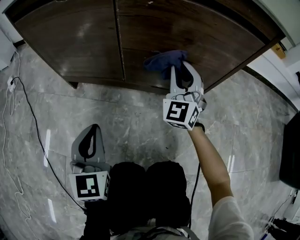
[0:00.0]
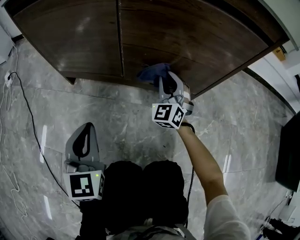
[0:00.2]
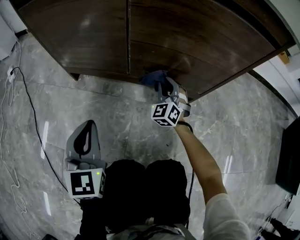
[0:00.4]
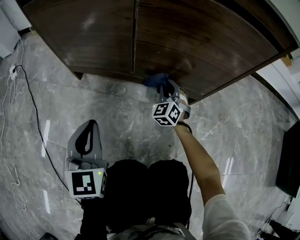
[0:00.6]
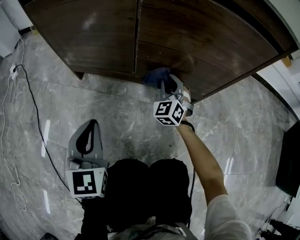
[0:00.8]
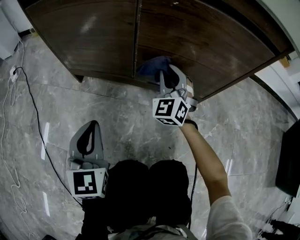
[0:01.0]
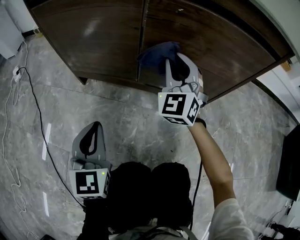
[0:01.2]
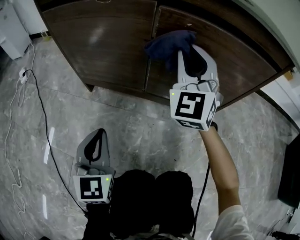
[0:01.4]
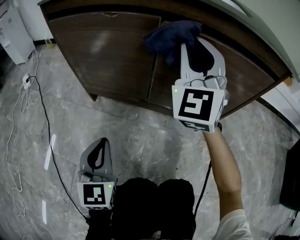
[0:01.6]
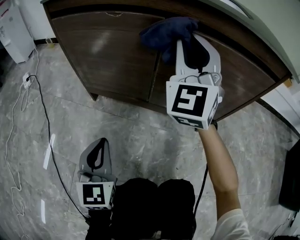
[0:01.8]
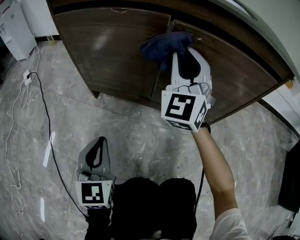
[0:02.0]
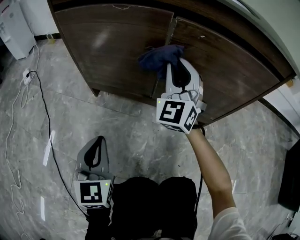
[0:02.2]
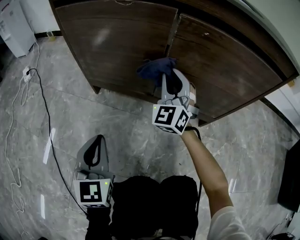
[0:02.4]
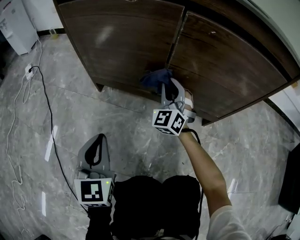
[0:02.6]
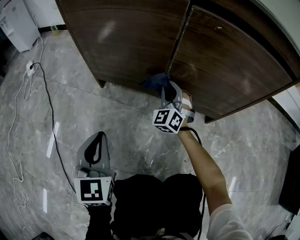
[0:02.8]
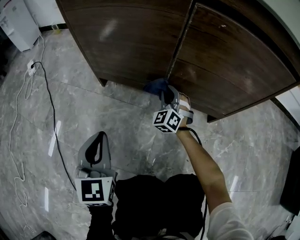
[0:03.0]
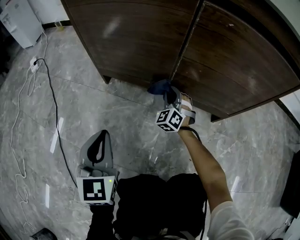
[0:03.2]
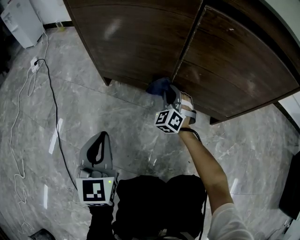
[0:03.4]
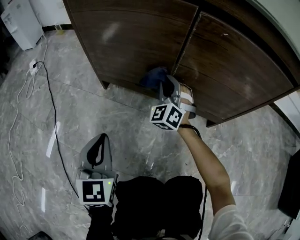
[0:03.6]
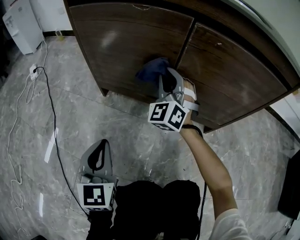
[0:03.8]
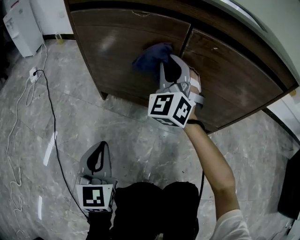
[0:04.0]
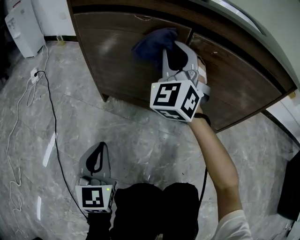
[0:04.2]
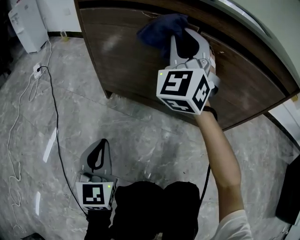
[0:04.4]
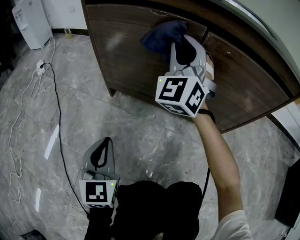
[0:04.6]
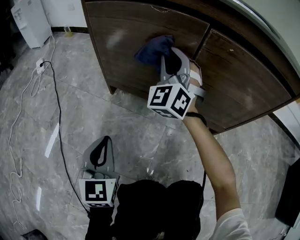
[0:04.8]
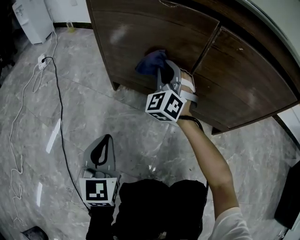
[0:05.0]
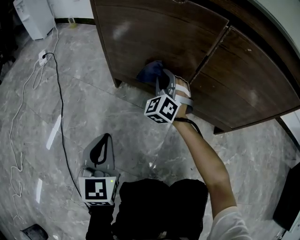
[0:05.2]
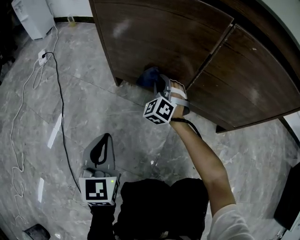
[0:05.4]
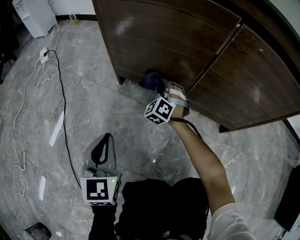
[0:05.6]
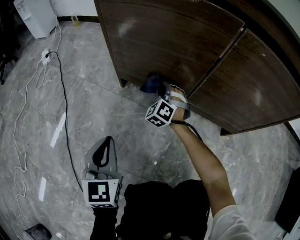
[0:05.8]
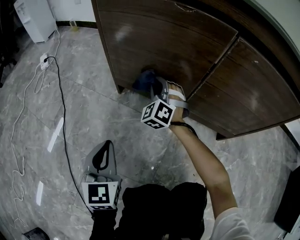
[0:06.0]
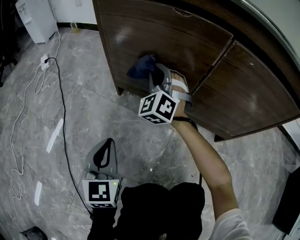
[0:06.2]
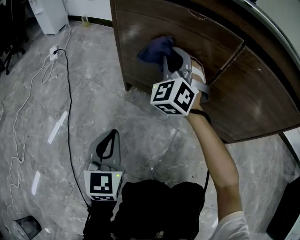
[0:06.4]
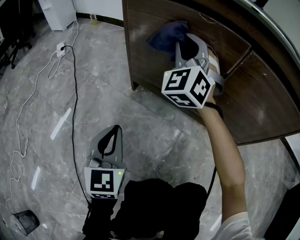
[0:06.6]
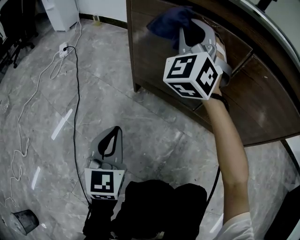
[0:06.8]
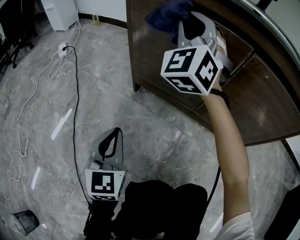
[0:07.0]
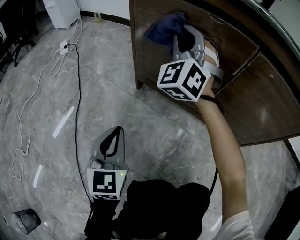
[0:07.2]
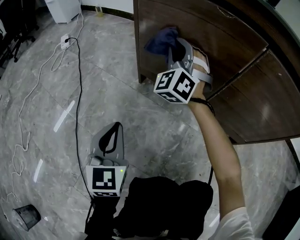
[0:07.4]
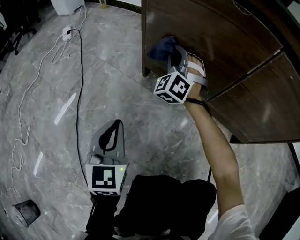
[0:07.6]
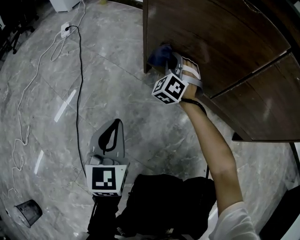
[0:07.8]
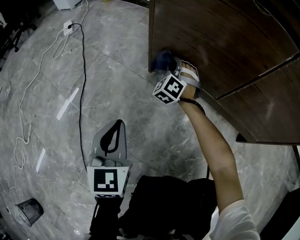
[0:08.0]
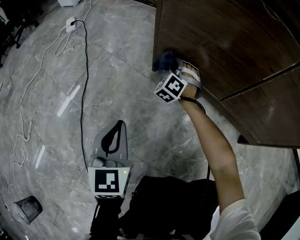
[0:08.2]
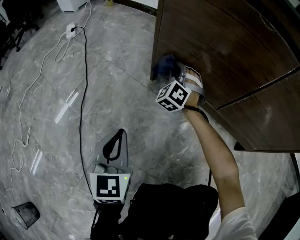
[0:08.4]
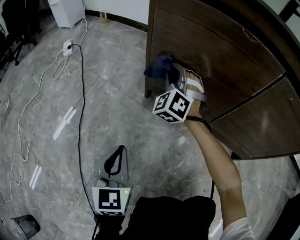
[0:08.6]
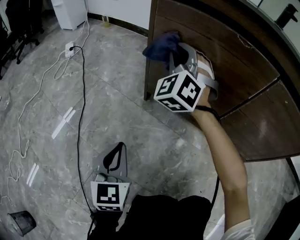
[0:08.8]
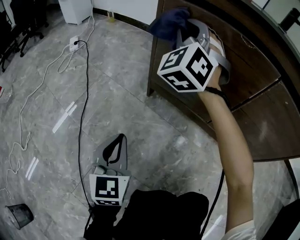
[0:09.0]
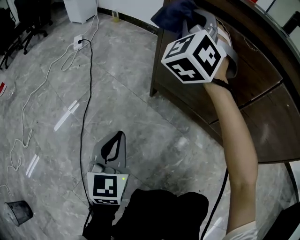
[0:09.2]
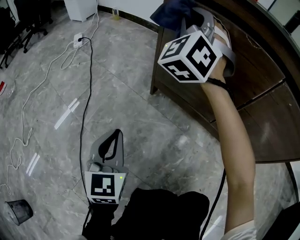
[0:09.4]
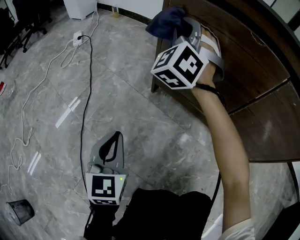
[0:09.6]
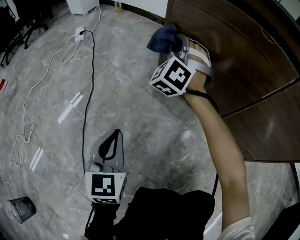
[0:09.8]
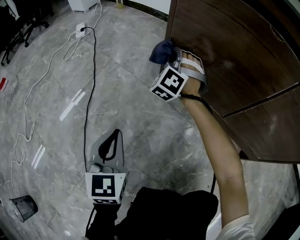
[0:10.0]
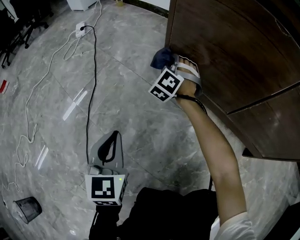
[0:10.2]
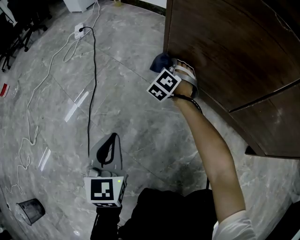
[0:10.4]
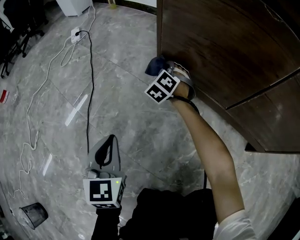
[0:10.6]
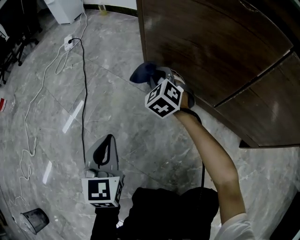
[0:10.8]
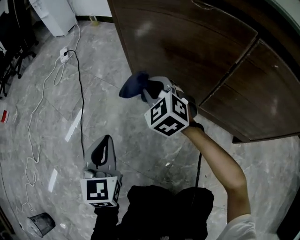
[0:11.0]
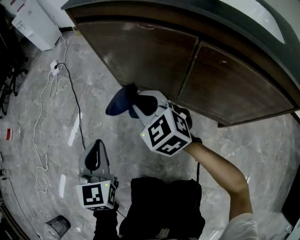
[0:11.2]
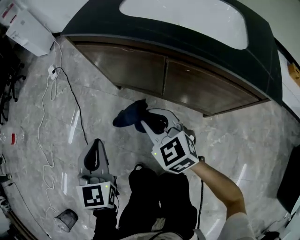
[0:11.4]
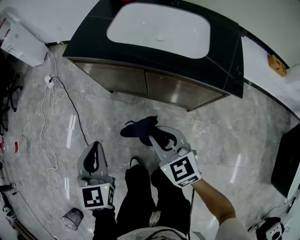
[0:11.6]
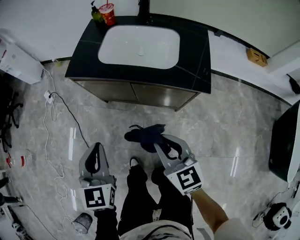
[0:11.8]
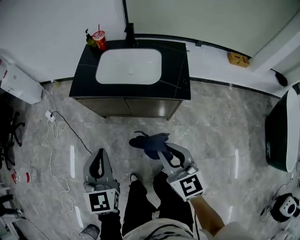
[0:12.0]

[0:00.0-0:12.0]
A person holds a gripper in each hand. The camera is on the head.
0:00.0 to 0:01.6: The right gripper shifts roughly 25 cm upward and to the left, while the left gripper shifts about 5 cm to the left.
0:01.6 to 0:03.0: The left gripper is displaced to the left by approximately 5 cm; the right gripper travels downward by about 40 cm, and changes its angle by some 30 degrees.
0:03.0 to 0:04.4: The right gripper is displaced upward by approximately 40 cm, and swivels approximately 30 degrees.
0:04.4 to 0:06.0: The left gripper moves some 5 cm; the right gripper shifts some 30 cm downward, and changes its angle by roughly 30 degrees.
0:06.0 to 0:07.6: The right gripper is displaced to the left by approximately 5 cm, and moves approximately 30 cm upward and comes back.
0:07.6 to 0:09.0: The right gripper shifts approximately 20 cm upward.
0:09.0 to 0:10.4: The left gripper shifts some 5 cm to the left; the right gripper heads downward, covering some 35 cm, and angles its fingers downward, by about 30 degrees.
0:10.4 to 0:12.0: Both grippers travel together upward, roughly 70 cm. The right gripper rolls clockwise, seen from behind, by some 70 degrees, while the left gripper turns by about 30 degrees.

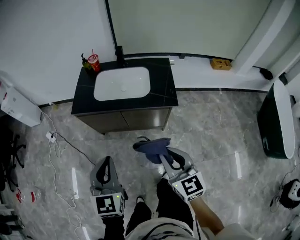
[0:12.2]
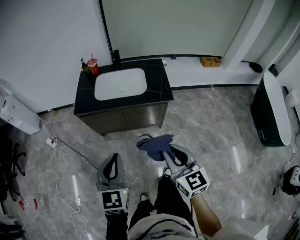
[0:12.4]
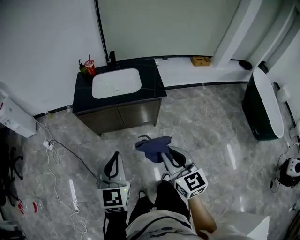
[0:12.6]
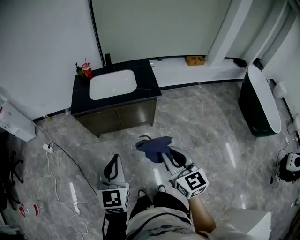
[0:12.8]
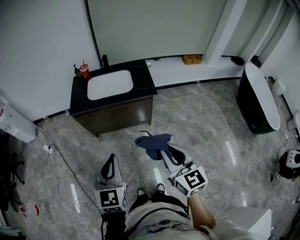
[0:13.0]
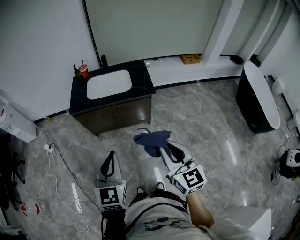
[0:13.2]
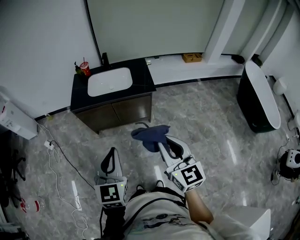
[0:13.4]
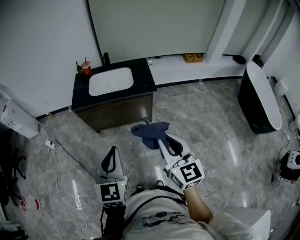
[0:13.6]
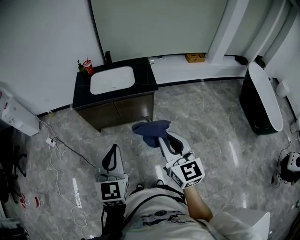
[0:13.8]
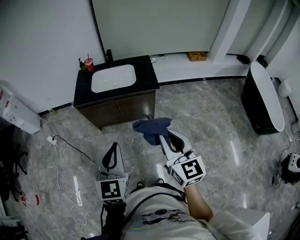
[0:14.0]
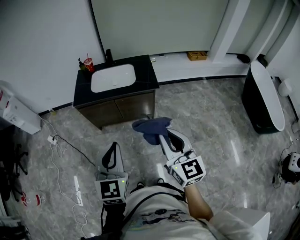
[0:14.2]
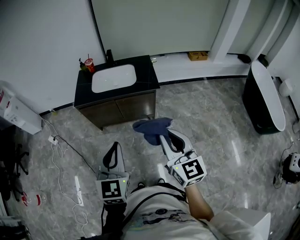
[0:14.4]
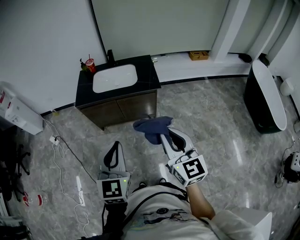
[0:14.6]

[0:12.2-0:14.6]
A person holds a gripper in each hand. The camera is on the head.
0:12.2 to 0:13.4: Both grippers travel together backward and upward, approximately 20 cm.
0:13.4 to 0:14.6: The grippers move only a little.

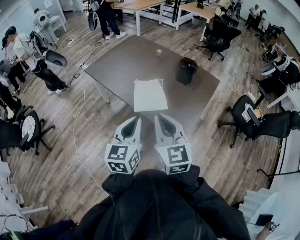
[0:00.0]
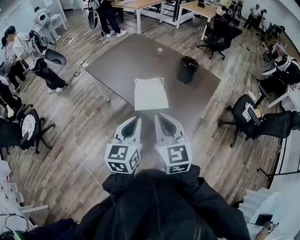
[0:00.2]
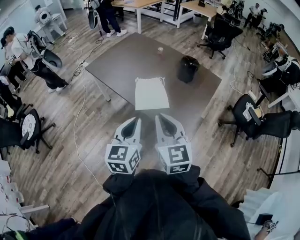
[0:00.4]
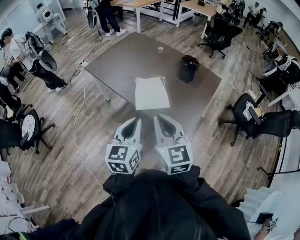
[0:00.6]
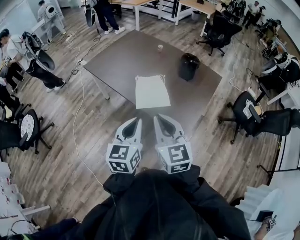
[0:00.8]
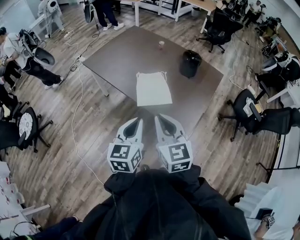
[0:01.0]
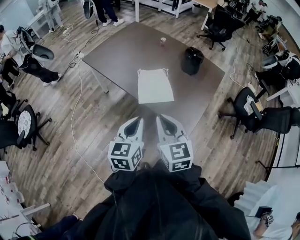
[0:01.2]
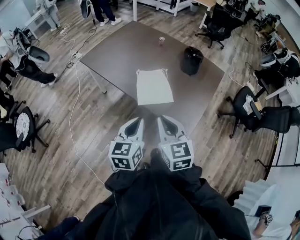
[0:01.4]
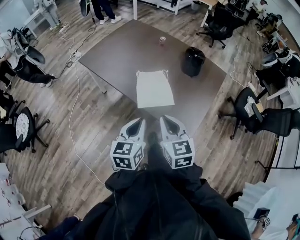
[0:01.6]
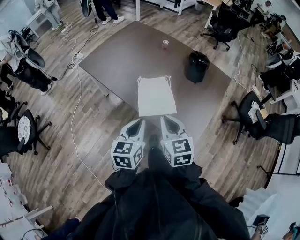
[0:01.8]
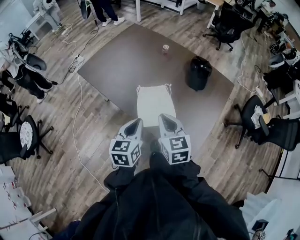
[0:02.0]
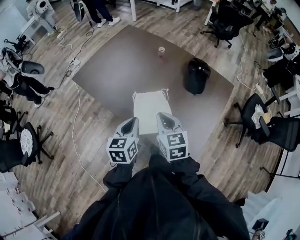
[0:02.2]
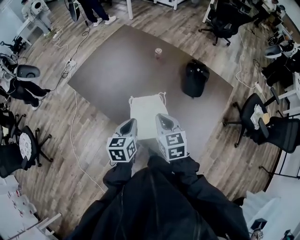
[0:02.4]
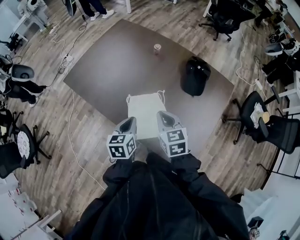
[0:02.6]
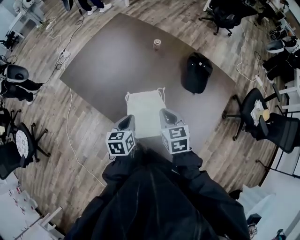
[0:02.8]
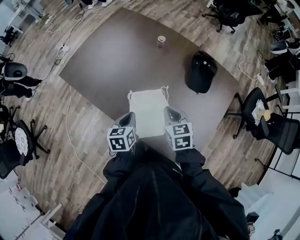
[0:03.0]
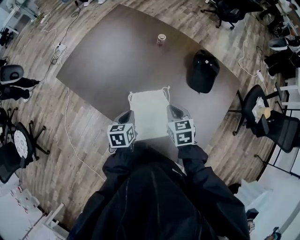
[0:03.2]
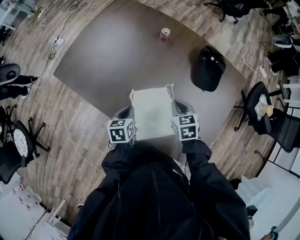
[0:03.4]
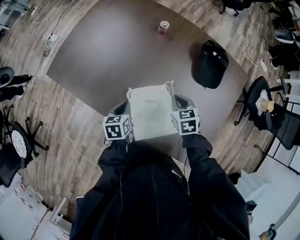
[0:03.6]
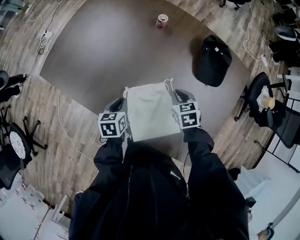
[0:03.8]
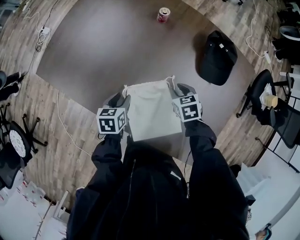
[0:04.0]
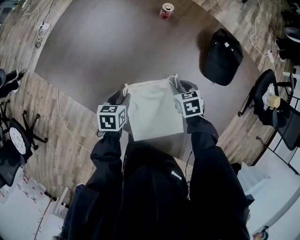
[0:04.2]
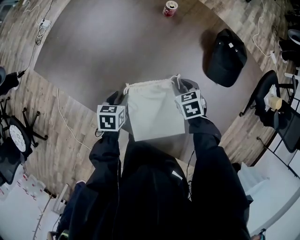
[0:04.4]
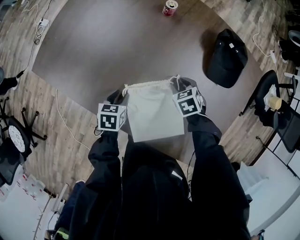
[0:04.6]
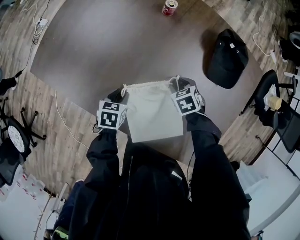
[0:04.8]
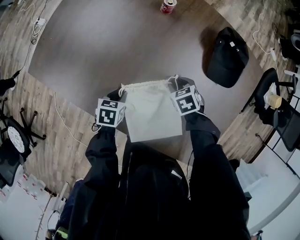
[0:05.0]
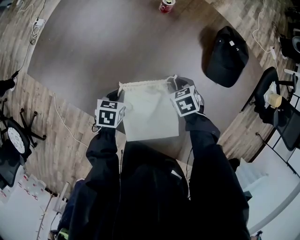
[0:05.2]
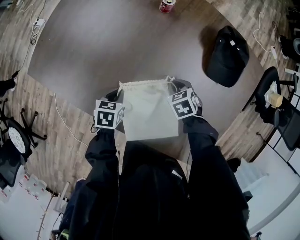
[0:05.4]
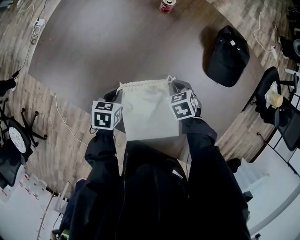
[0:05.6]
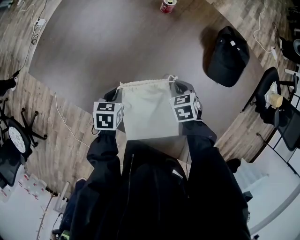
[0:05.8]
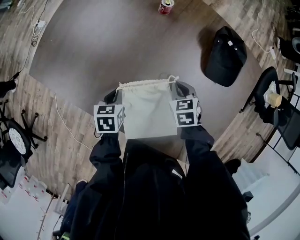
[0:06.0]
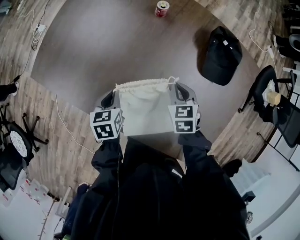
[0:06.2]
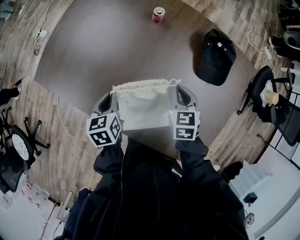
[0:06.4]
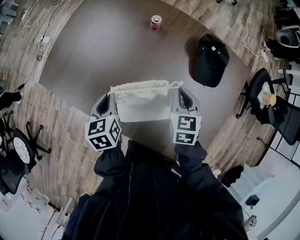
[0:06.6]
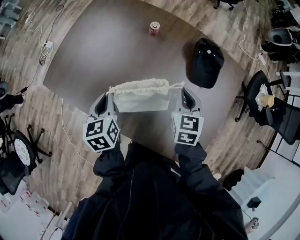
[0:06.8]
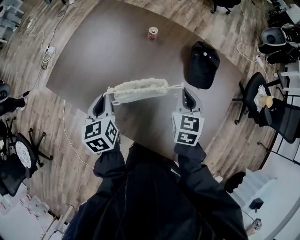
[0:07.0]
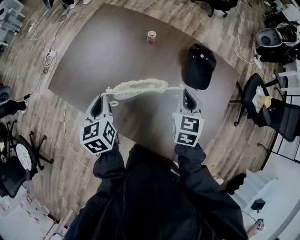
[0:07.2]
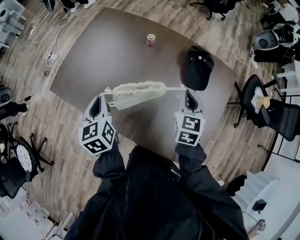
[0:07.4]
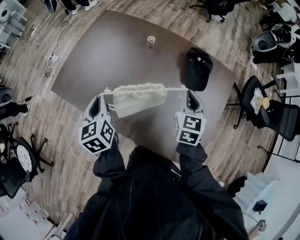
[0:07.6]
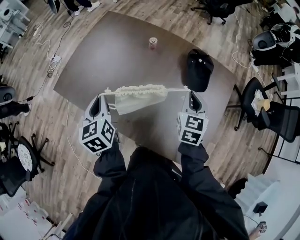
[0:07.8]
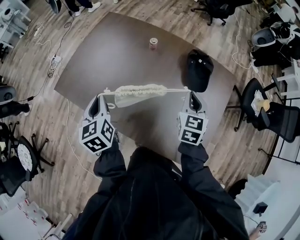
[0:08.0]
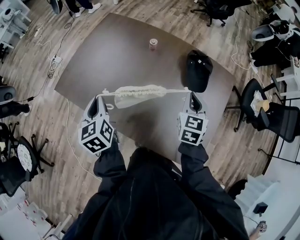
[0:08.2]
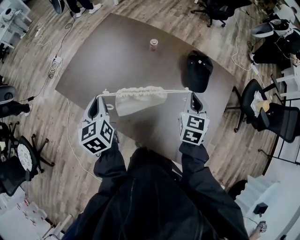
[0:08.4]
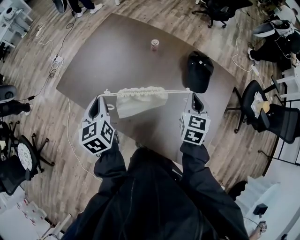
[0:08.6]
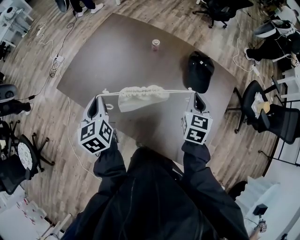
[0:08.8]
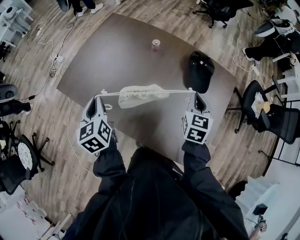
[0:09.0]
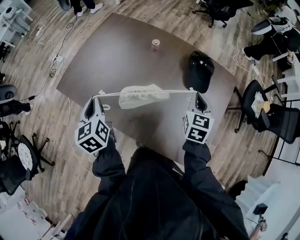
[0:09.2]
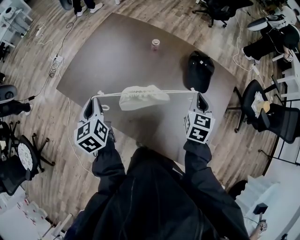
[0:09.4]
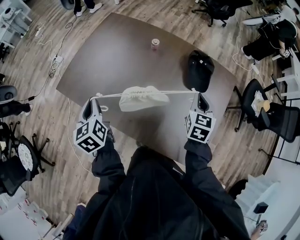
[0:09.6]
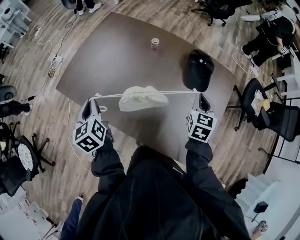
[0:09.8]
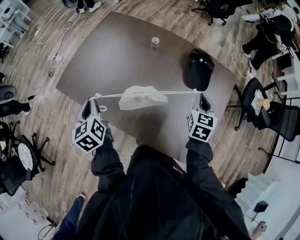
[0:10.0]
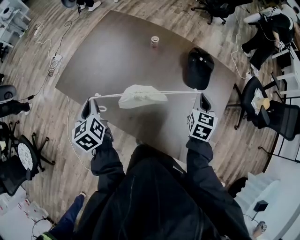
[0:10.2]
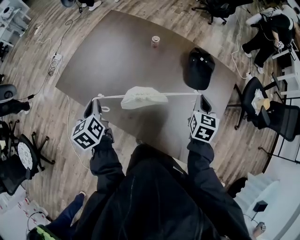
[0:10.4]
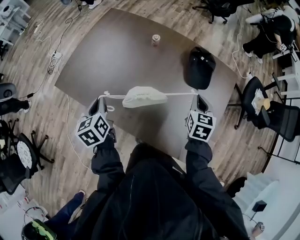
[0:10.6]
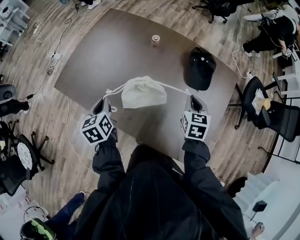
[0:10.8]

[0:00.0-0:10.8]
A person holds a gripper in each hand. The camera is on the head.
0:00.0 to 0:01.6: Both grippers travel together downward and forward, about 15 cm.
0:01.6 to 0:03.0: The two grippers go some 35 cm forward and downward. The left gripper changes its angle by approximately 20 degrees.
0:03.0 to 0:04.6: Both grippers move downward and forward, some 25 cm. The left gripper changes its angle by some 20 degrees, and opens its fingers. The right gripper changes its angle by approximately 30 degrees, and opens its fingers.
0:04.6 to 0:06.2: Both grippers travel together upward, roughly 5 cm. The left gripper closes. Meanwhile the right gripper swivels about 20 degrees, and closes its fingers.
0:06.2 to 0:07.8: Both grippers move upward, about 25 cm. The right gripper rotates about 30 degrees. Meanwhile the left gripper rotates approximately 30 degrees.
0:07.8 to 0:09.2: The grippers stay close to where they were, moving slightly.
0:09.2 to 0:10.8: Both grippers travel together downward, about 5 cm.
